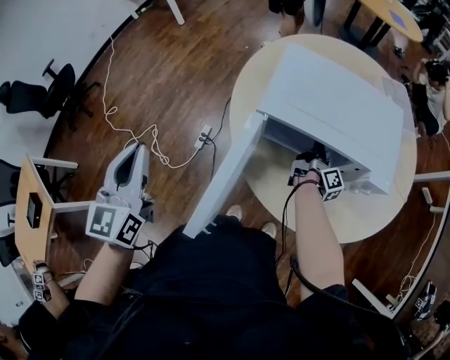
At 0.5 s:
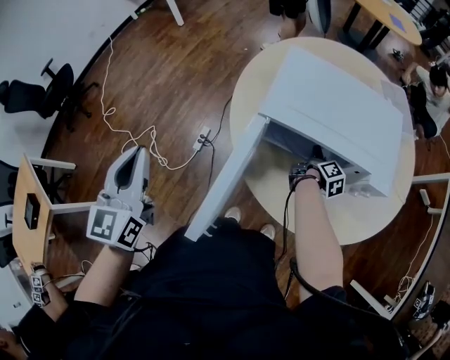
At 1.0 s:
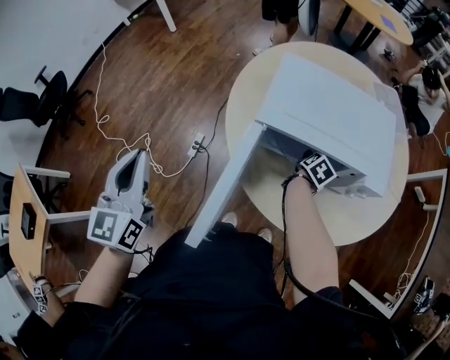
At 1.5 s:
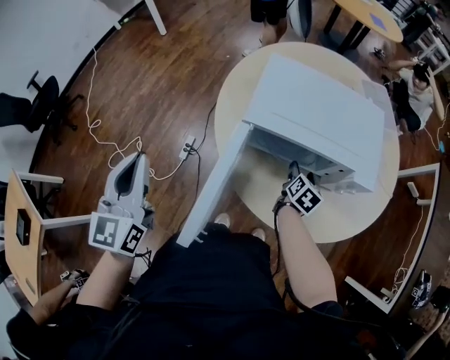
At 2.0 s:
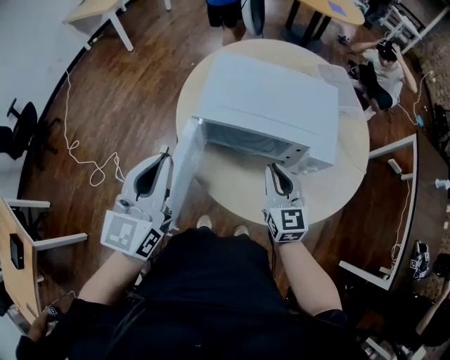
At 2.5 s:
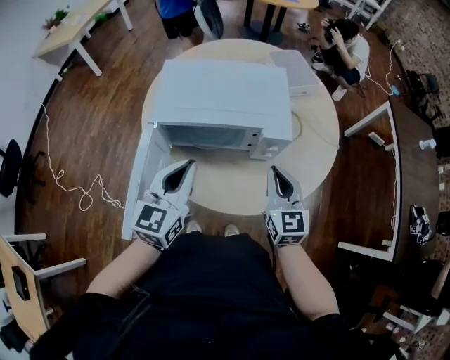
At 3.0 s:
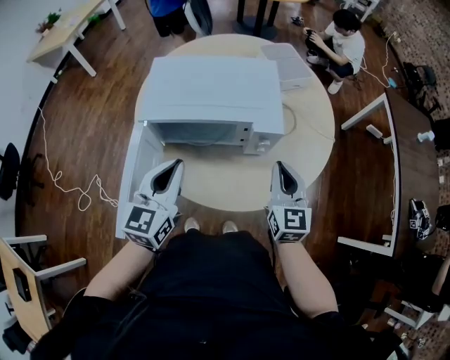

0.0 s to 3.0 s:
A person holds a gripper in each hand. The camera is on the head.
0.0 to 1.5 s: The right gripper moves backward, some 5 cm, twists about 60 degrees counterclockwise, seen from behind, and opens its fingers.
1.5 to 3.0 s: The right gripper is displaced upward, to the right and backward by approximately 25 cm, angles its fingers upward, by approximately 30 degrees, and closes its fingers. The left gripper shifts roughly 30 cm to the right, and turns by roughly 30 degrees.

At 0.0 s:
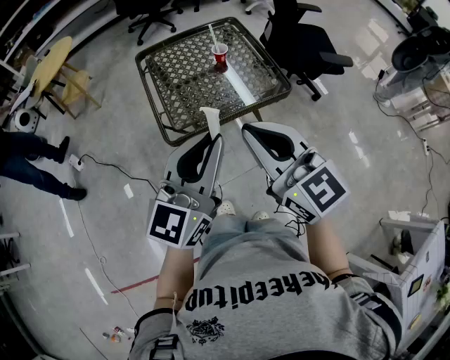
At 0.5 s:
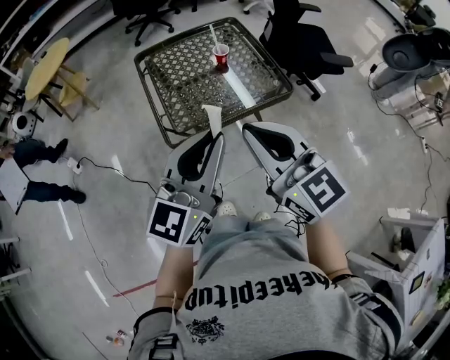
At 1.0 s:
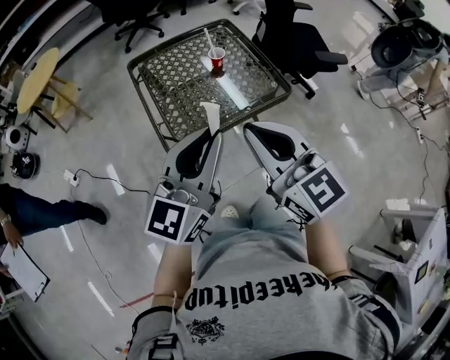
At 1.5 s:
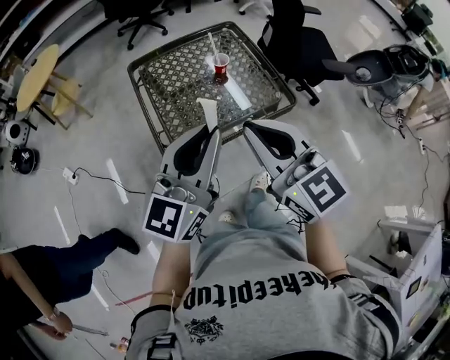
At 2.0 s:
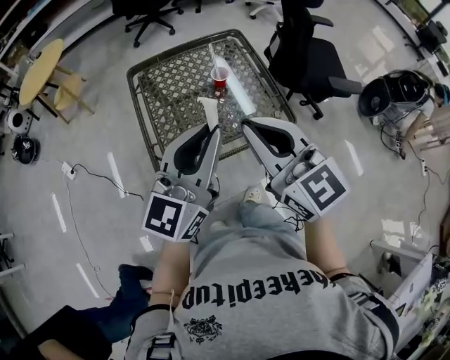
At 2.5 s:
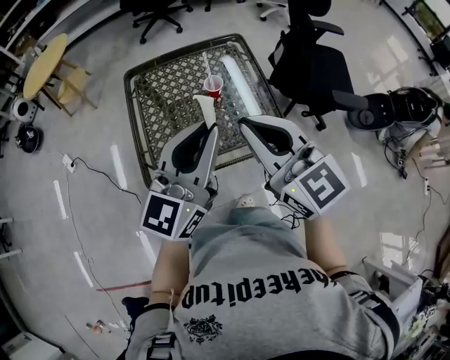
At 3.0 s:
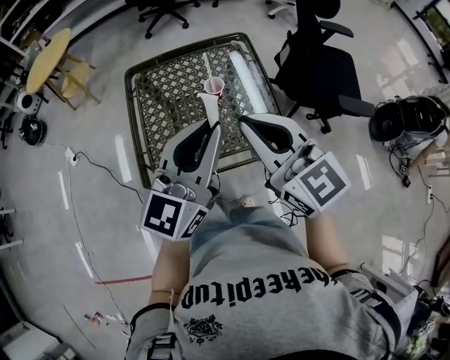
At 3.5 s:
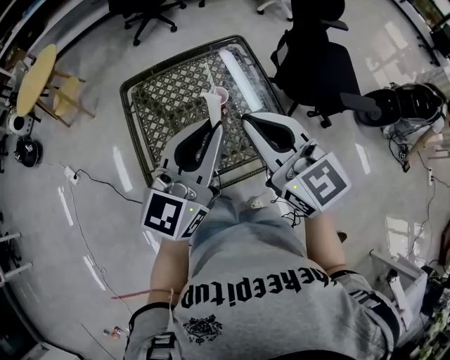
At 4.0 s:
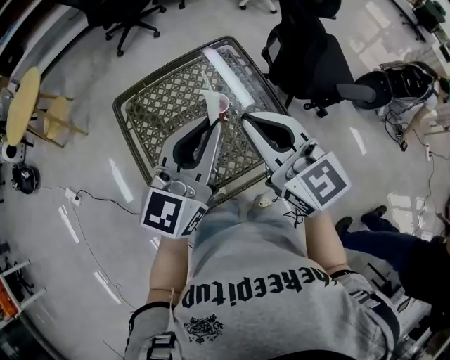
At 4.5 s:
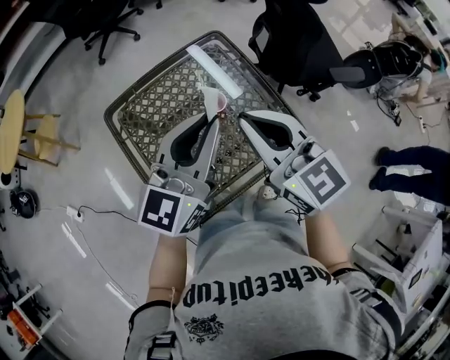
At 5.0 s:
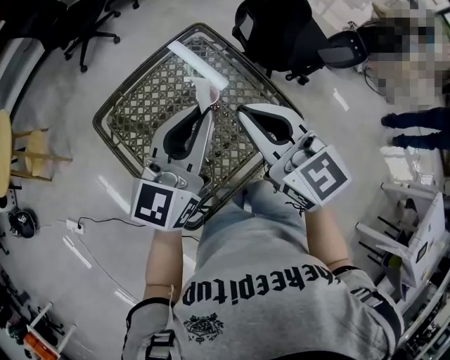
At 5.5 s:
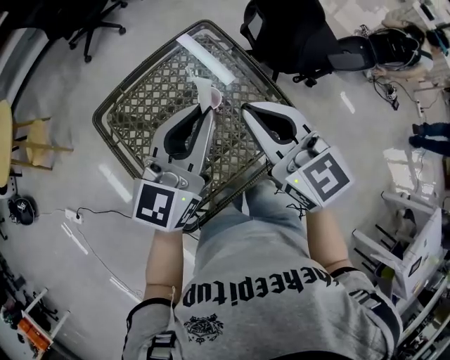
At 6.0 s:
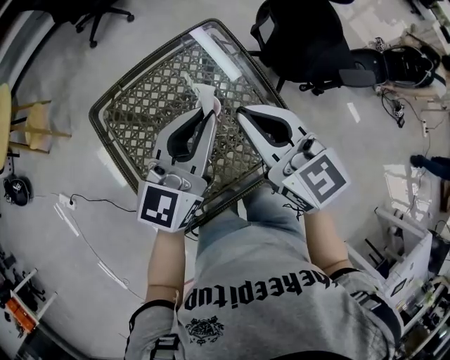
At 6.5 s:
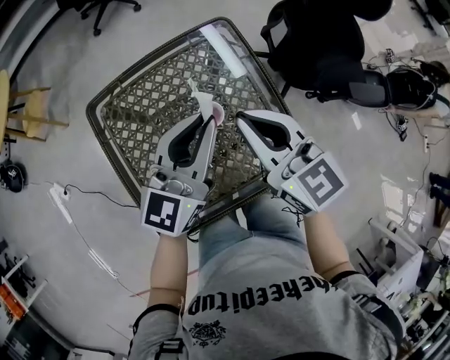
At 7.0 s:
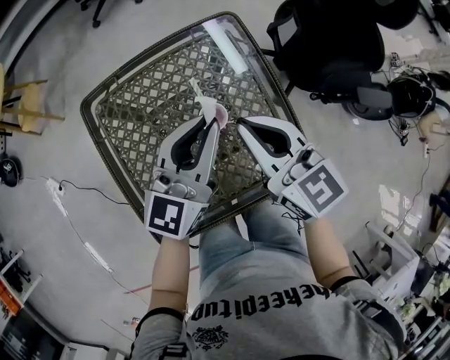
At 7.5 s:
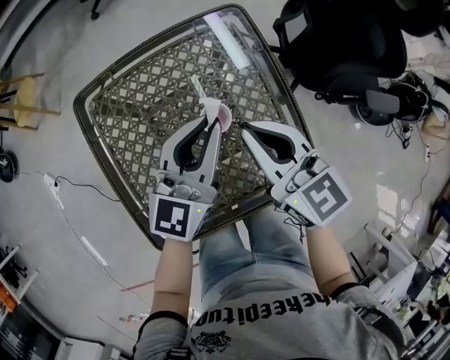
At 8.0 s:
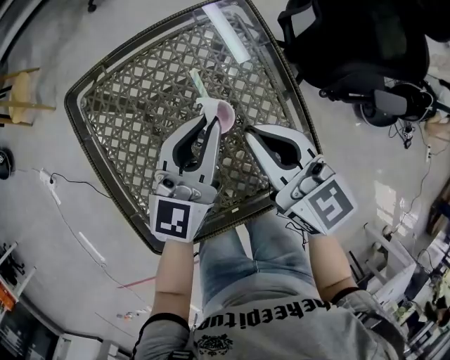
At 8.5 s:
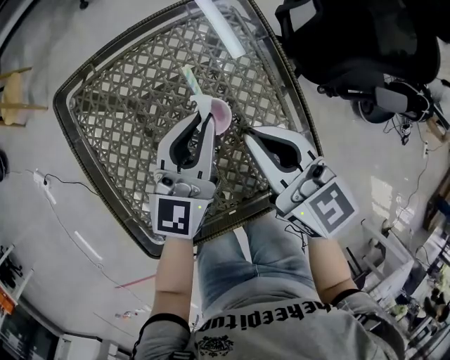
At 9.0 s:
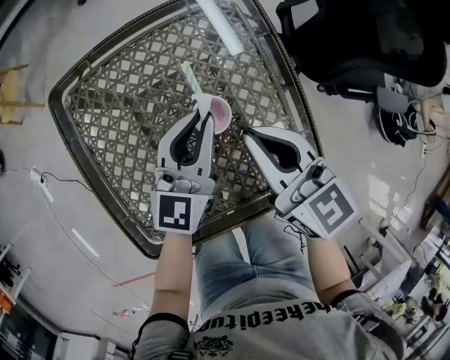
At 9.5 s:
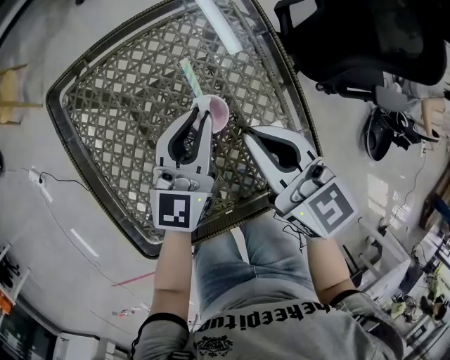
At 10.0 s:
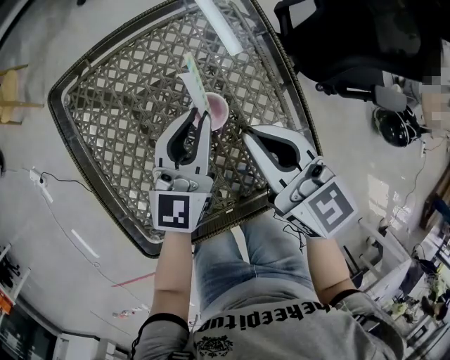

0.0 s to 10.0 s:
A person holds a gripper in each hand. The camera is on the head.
0.0 to 2.0 s: Both grippers move forward, approximately 20 cm.
2.0 to 4.0 s: Both grippers move forward, approximately 20 cm.
4.0 to 6.0 s: The left gripper heads forward and downward, covering approximately 10 cm. Meanwhile the right gripper is displaced forward by some 10 cm.
6.0 to 8.0 s: The grippers both shift downward by some 15 cm.
8.0 to 10.0 s: The left gripper goes approximately 5 cm downward.

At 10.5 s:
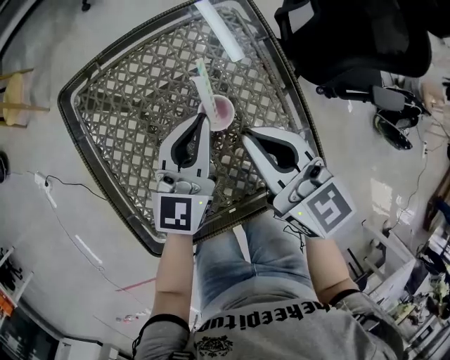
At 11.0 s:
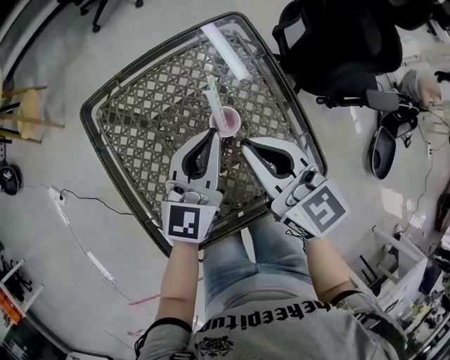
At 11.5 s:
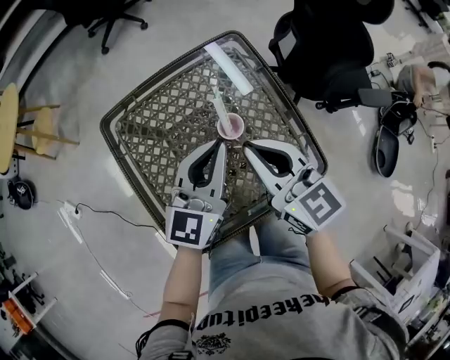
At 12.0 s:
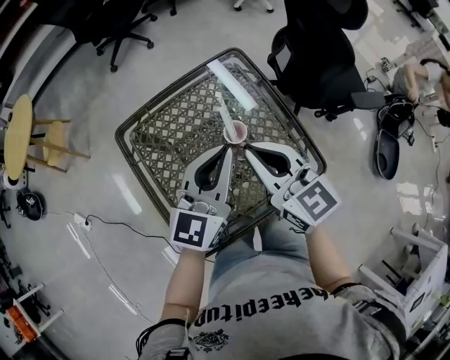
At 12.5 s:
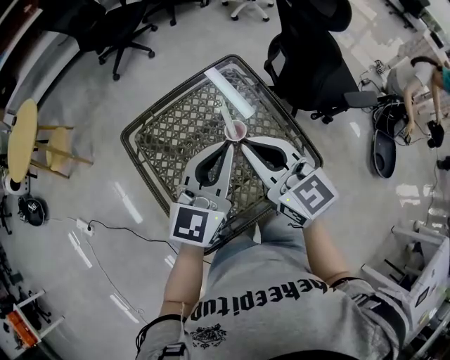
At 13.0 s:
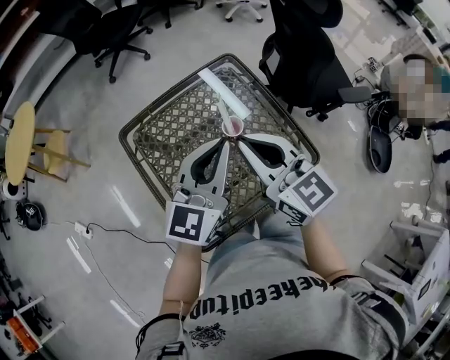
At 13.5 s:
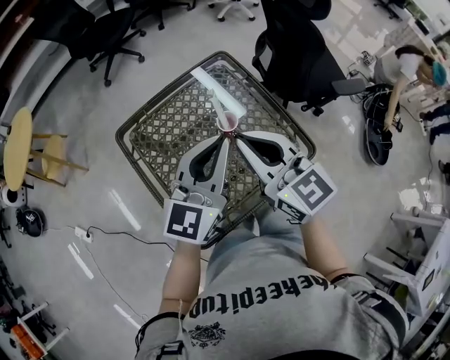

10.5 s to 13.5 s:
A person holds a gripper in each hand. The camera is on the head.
10.5 to 12.0 s: The two grippers go some 15 cm upward.
12.0 to 13.5 s: The left gripper moves backward and upward, about 10 cm; the right gripper is displaced upward and backward by some 10 cm.

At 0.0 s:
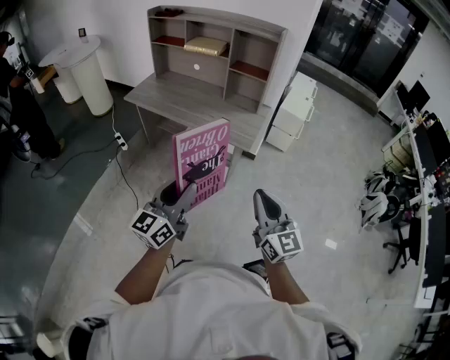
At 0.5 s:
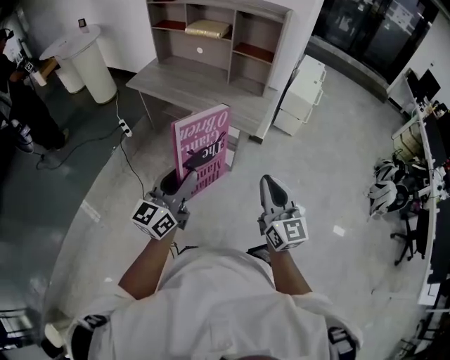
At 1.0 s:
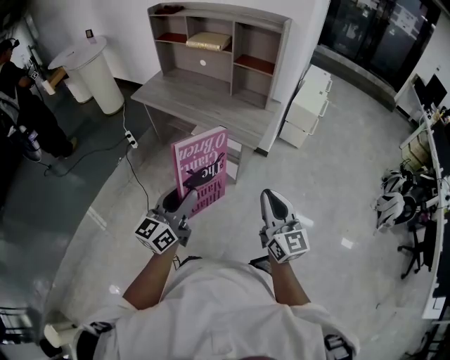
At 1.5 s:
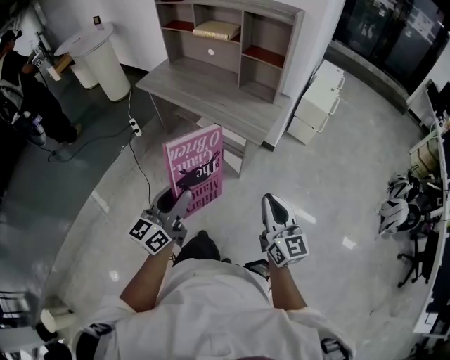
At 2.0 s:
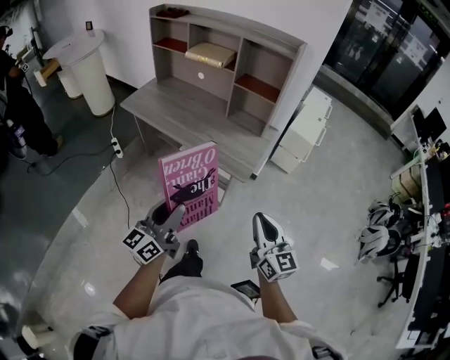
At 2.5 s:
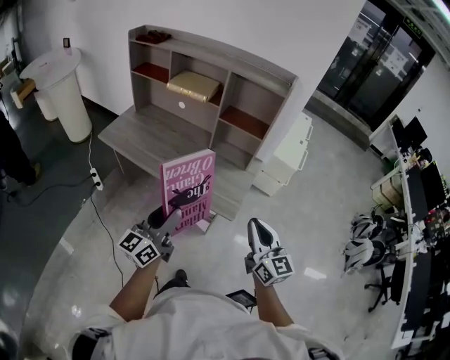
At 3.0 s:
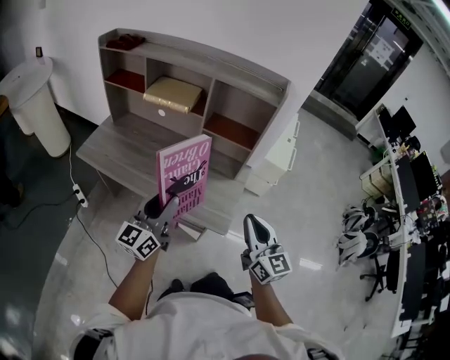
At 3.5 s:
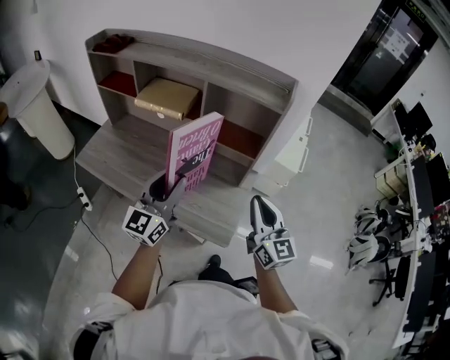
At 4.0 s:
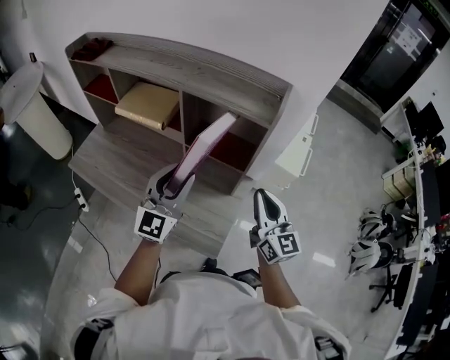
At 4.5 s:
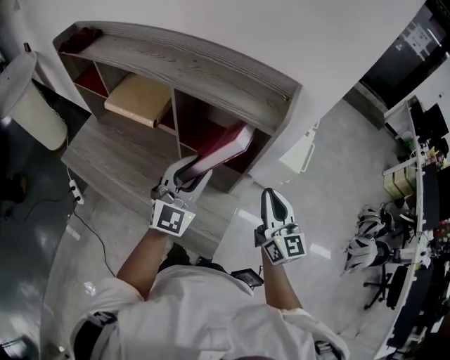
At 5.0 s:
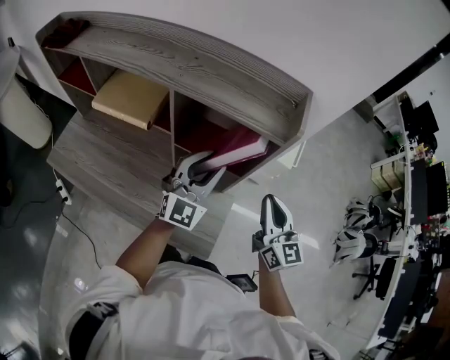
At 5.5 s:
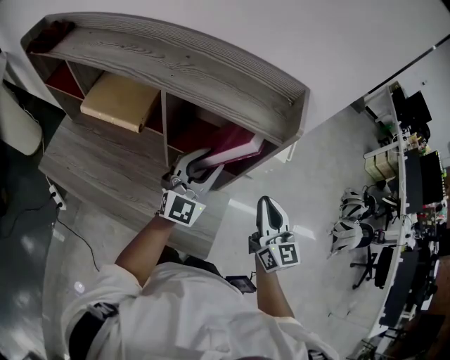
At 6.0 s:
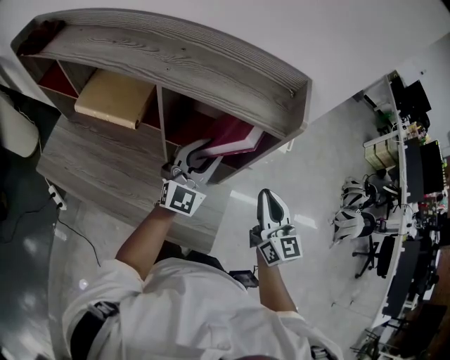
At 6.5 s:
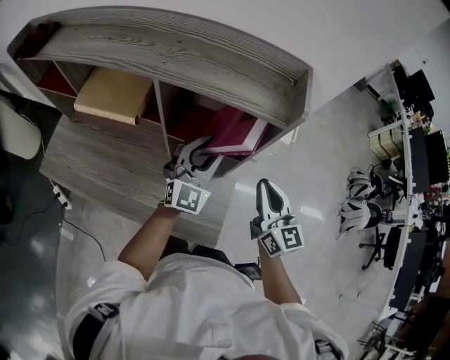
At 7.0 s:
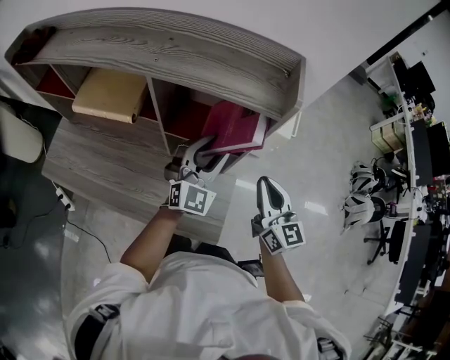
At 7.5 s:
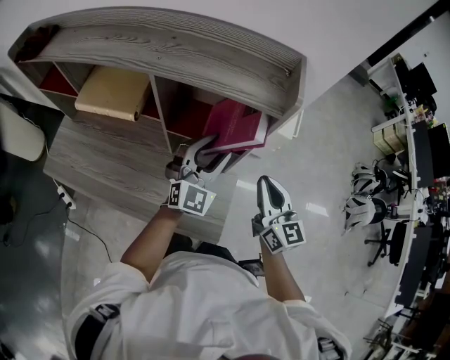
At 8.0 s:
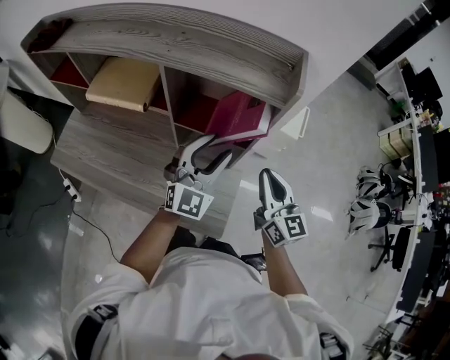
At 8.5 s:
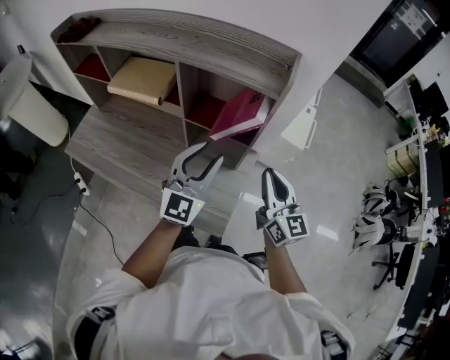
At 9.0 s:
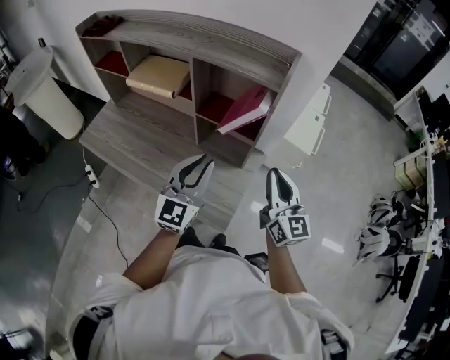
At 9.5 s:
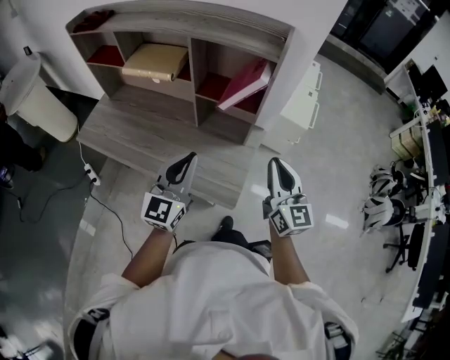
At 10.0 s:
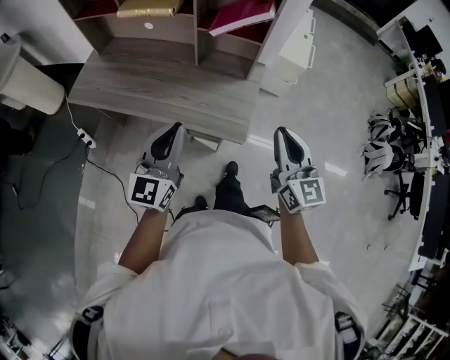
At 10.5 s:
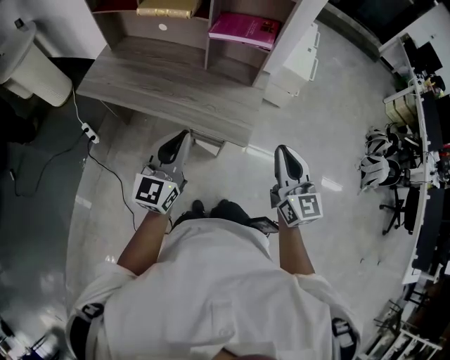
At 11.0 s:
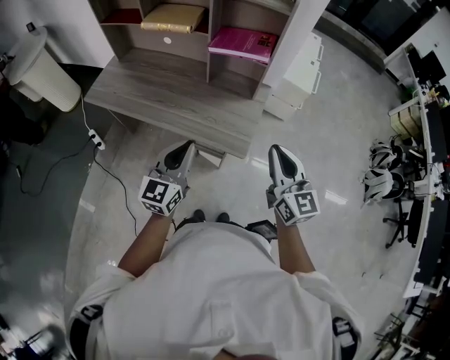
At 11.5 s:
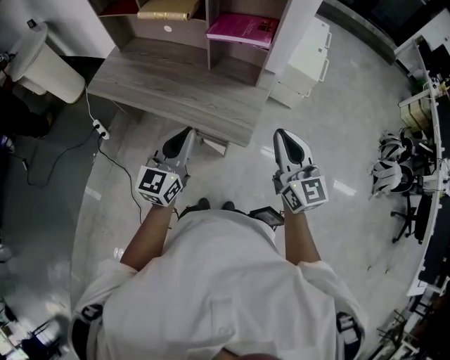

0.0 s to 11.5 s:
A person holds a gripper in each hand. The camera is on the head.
0.0 to 2.0 s: The left gripper goes some 15 cm forward and downward; the right gripper heads forward, to the right and downward, covering roughly 20 cm.
2.0 to 4.0 s: Both grippers are carried forward, approximately 50 cm. The left gripper turns by some 40 degrees.
4.0 to 6.0 s: The right gripper ends up some 5 cm from where it was. The left gripper is displaced forward, to the right and downward by roughly 15 cm.
6.0 to 7.5 s: There are only small adjustments of the grippers.
7.5 to 9.5 s: The left gripper moves backward and to the left, about 25 cm, turns by some 30 degrees, and closes its fingers, while the right gripper goes some 15 cm backward.
9.5 to 11.5 s: Both grippers travel together backward, approximately 15 cm.
